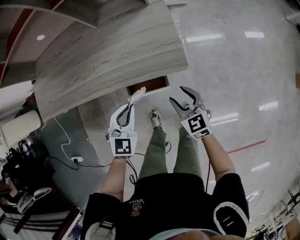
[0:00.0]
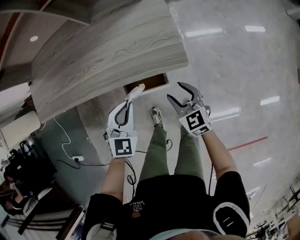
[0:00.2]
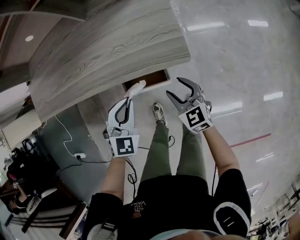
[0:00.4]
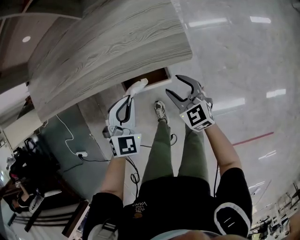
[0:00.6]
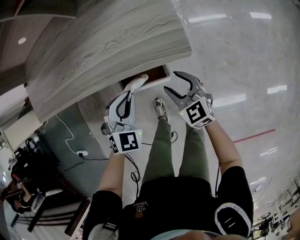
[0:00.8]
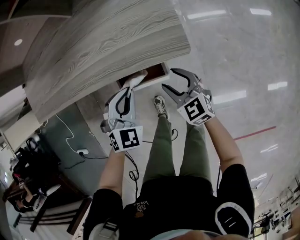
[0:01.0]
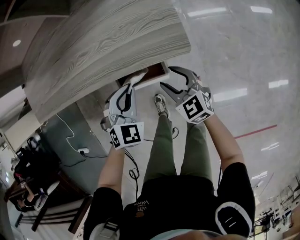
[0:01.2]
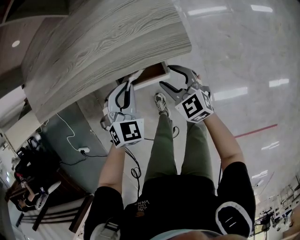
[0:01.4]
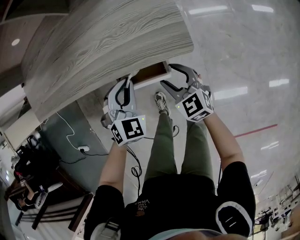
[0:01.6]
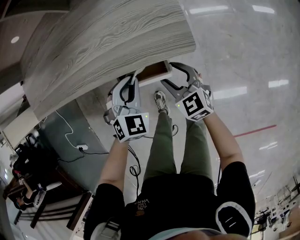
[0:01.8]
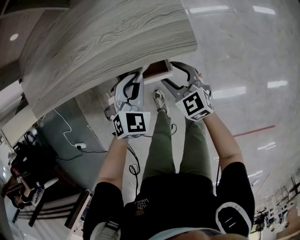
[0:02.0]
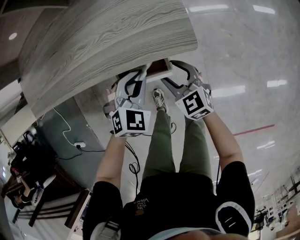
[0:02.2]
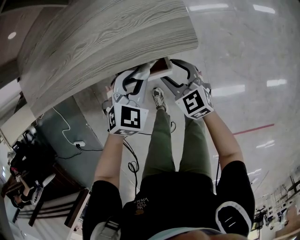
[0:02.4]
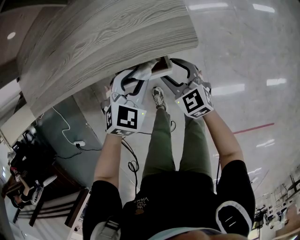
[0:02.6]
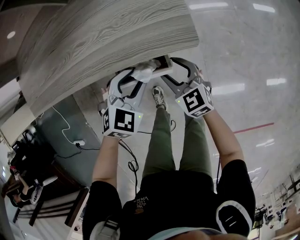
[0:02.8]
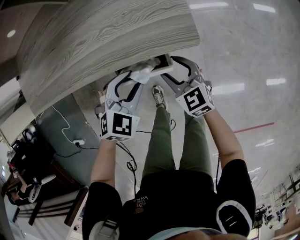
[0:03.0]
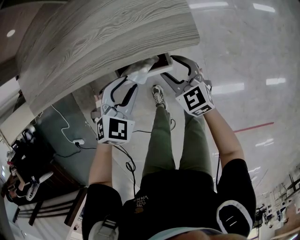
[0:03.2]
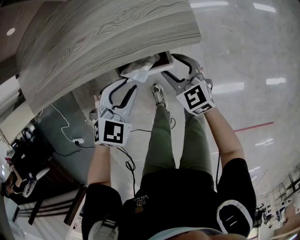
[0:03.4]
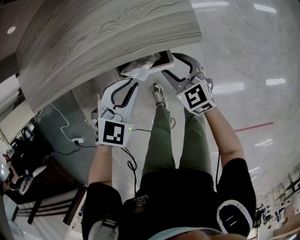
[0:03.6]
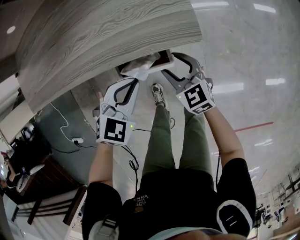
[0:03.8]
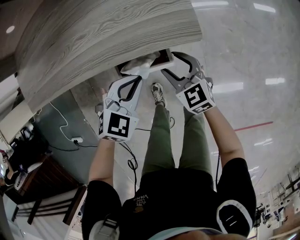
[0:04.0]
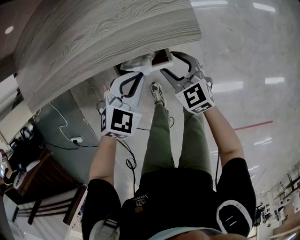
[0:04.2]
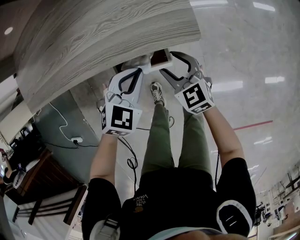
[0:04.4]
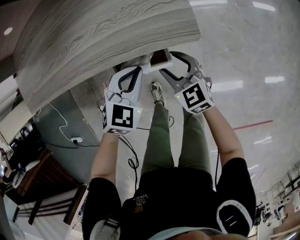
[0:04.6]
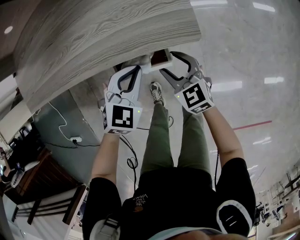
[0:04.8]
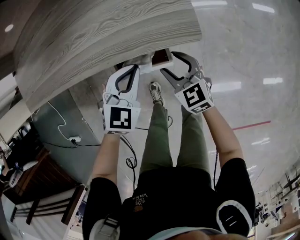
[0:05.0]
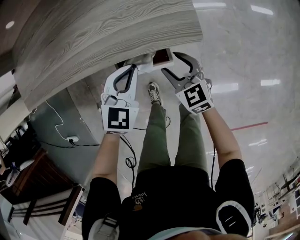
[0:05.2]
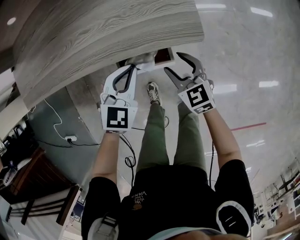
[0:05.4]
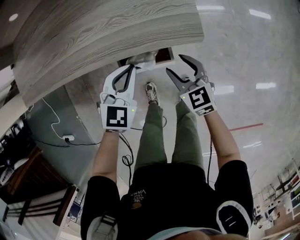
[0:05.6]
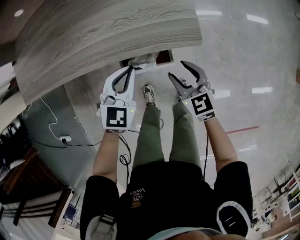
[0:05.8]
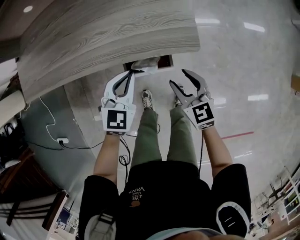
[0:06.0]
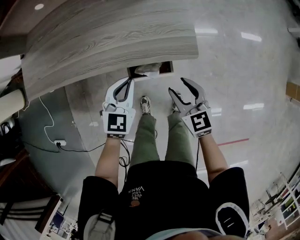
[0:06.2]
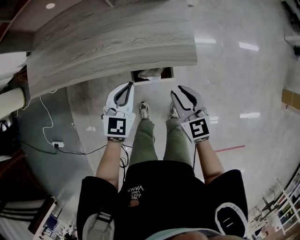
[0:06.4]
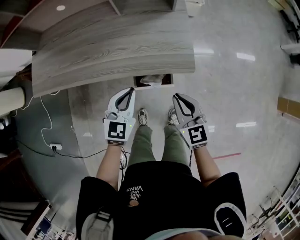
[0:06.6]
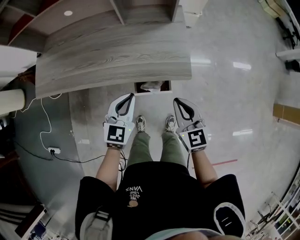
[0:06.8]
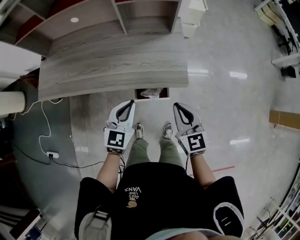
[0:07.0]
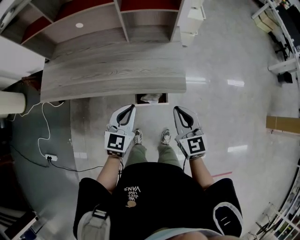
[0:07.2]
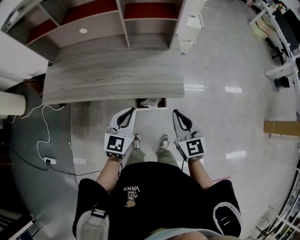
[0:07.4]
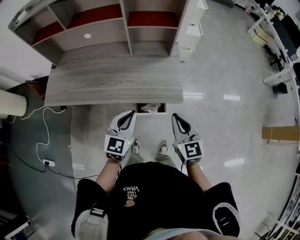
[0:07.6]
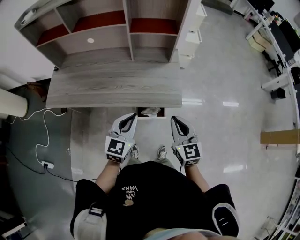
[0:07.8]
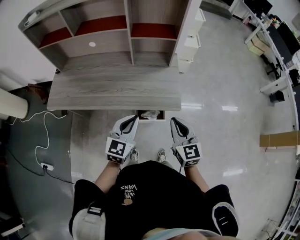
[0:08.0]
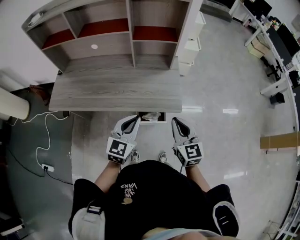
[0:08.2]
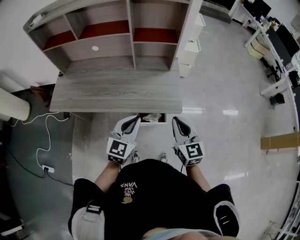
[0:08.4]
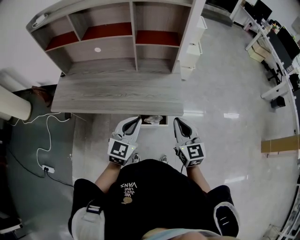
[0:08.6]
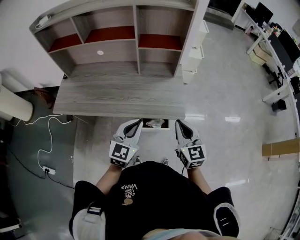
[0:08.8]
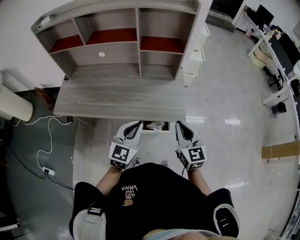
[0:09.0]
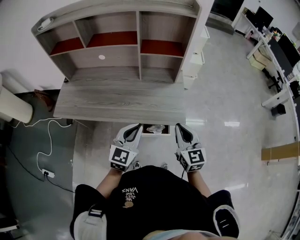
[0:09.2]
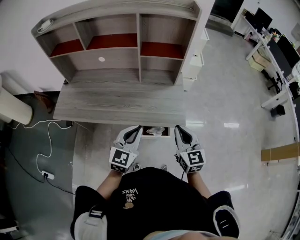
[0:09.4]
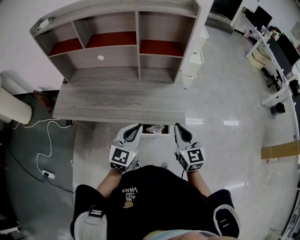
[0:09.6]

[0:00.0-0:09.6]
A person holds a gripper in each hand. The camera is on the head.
0:00.0 to 0:01.6: Both grippers travel together downward, about 10 cm. The left gripper turns by some 20 degrees.
0:01.6 to 0:03.2: The left gripper swivels about 20 degrees, and opens its fingers.
0:03.2 to 0:04.8: The left gripper closes up.
0:04.8 to 0:06.4: The left gripper moves upward and to the left, roughly 15 cm, and changes its angle by approximately 30 degrees, while the right gripper heads upward, covering roughly 15 cm, and closes its fingers.
0:06.4 to 0:08.0: Both grippers move upward, some 20 cm. The right gripper closes its fingers.
0:08.0 to 0:09.6: The grippers stay close to where they were, moving slightly.

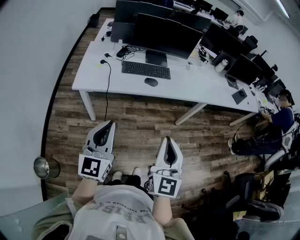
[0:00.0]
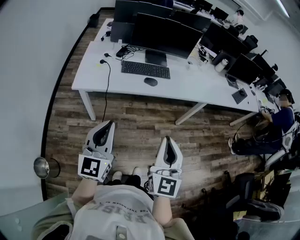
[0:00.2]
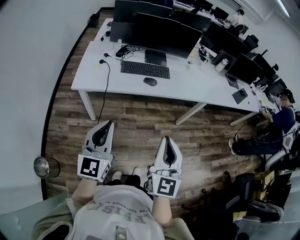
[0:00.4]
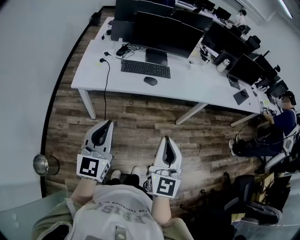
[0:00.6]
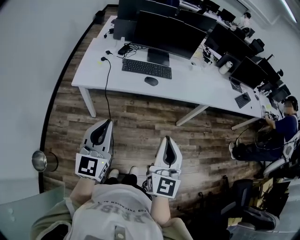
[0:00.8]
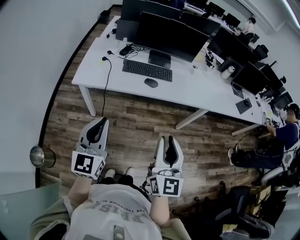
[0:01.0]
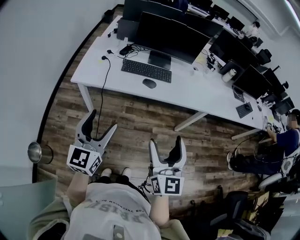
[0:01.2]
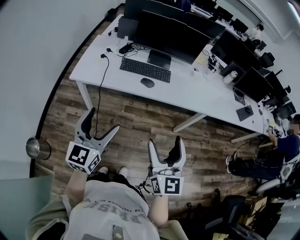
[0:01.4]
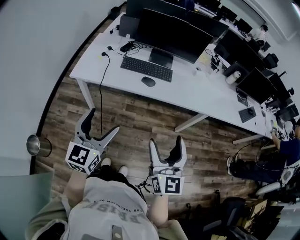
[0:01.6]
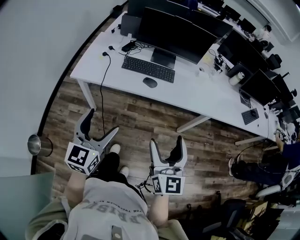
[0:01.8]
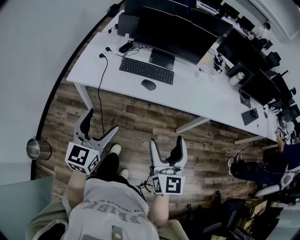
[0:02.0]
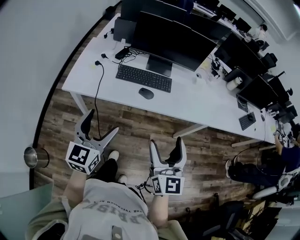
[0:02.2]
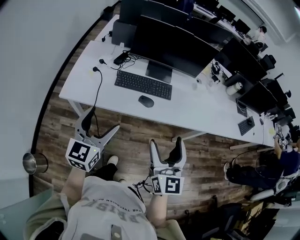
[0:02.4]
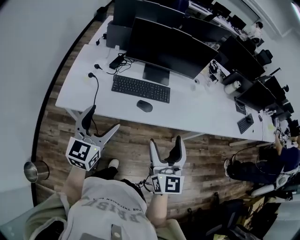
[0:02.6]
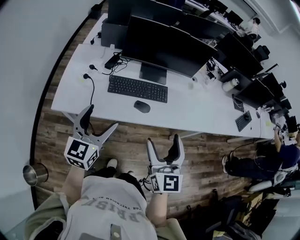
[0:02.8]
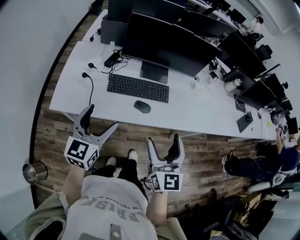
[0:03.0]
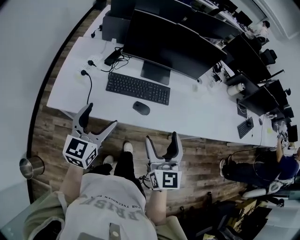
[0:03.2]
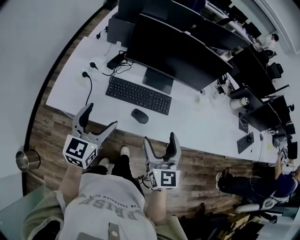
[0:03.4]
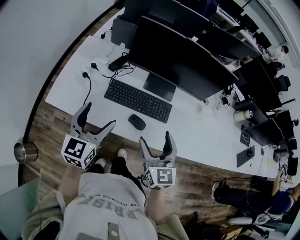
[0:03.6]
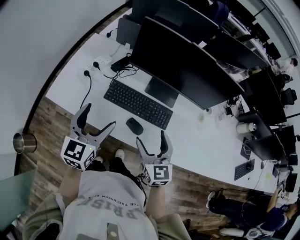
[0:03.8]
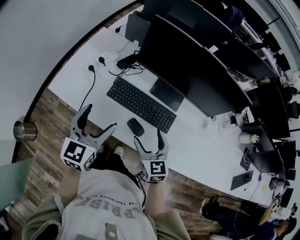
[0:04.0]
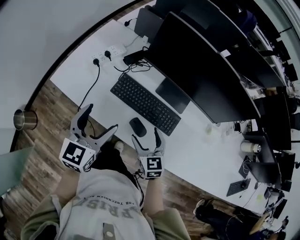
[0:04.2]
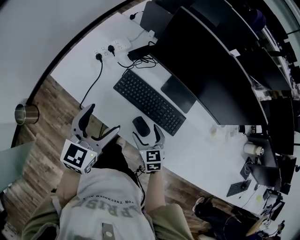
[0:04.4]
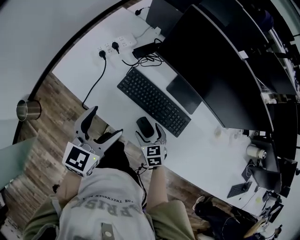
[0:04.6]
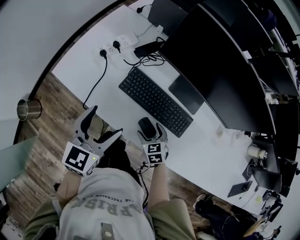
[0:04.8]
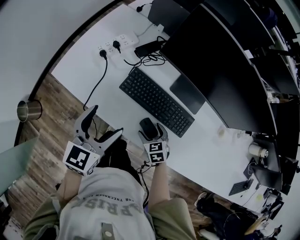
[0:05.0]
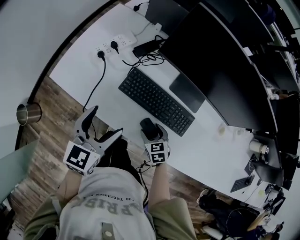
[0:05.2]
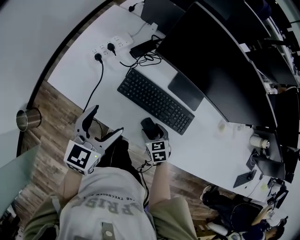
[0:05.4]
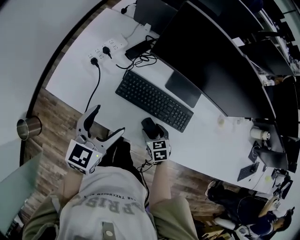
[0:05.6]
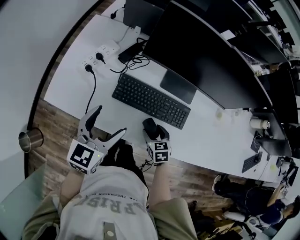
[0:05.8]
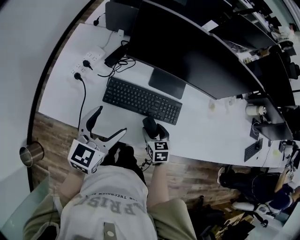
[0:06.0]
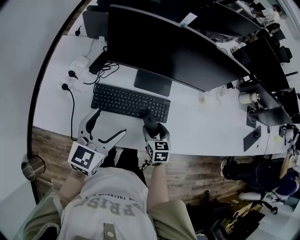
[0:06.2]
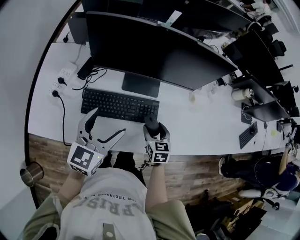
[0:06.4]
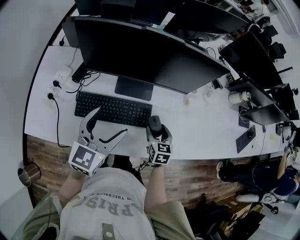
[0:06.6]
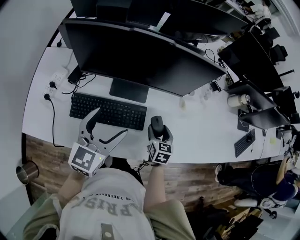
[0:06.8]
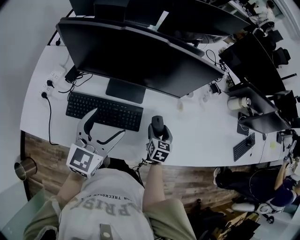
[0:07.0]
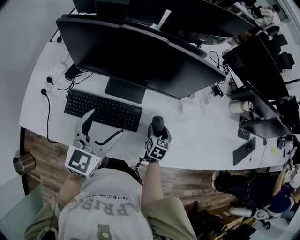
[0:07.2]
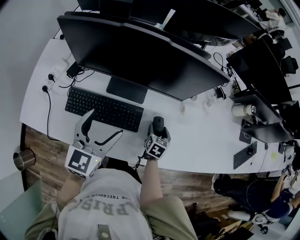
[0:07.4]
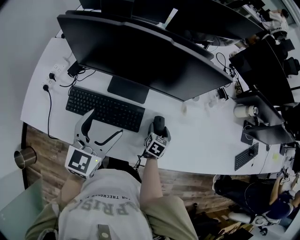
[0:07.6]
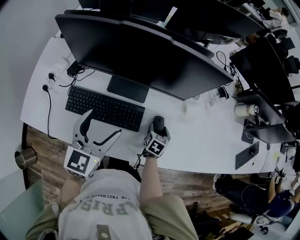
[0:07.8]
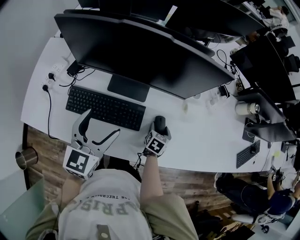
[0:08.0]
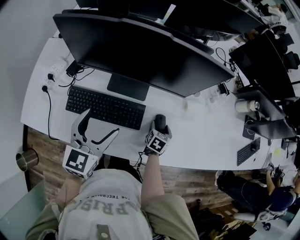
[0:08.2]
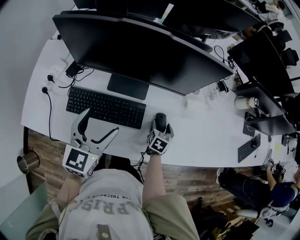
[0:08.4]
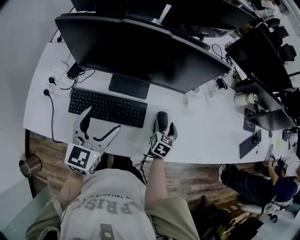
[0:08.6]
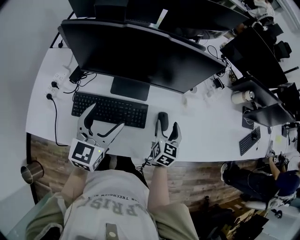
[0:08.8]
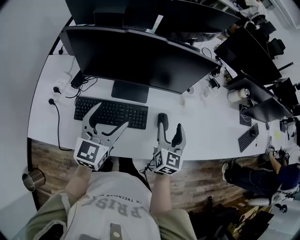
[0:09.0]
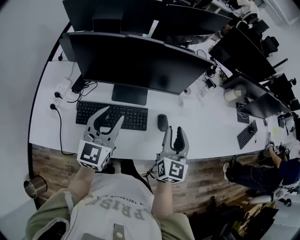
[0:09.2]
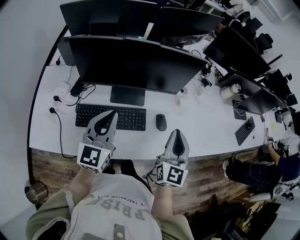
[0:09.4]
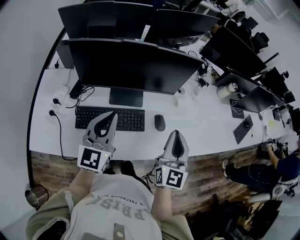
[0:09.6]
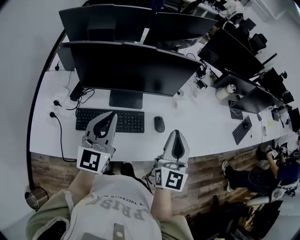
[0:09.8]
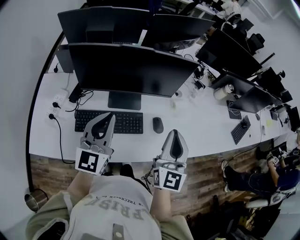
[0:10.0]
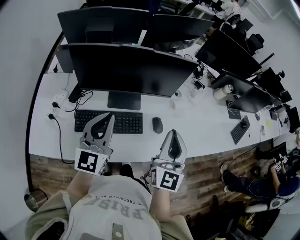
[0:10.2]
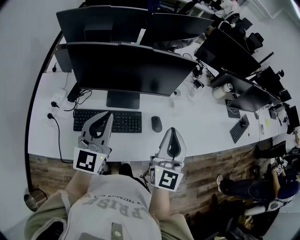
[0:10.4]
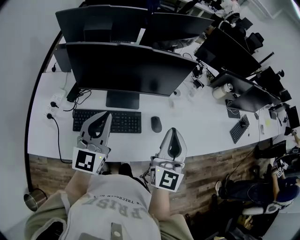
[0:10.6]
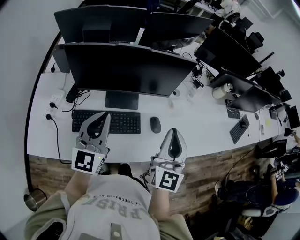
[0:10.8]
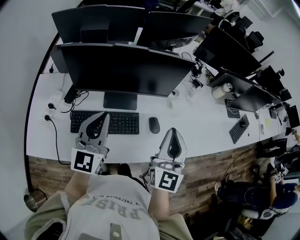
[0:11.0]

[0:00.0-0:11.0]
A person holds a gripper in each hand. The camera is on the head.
0:00.0 to 0:01.6: The left gripper is displaced to the right by about 10 cm, and opens its fingers. The right gripper moves to the right and forward, some 15 cm, swivels some 20 degrees, and opens up.
0:01.6 to 0:03.2: Both grippers travel together forward, about 30 cm.
0:03.2 to 0:04.8: The left gripper shifts by about 10 cm, and changes its angle by roughly 20 degrees, while the right gripper shifts about 35 cm downward, and points its fingers approximately 50 degrees further downward.
0:04.8 to 0:06.2: The left gripper moves about 10 cm, and changes its angle by approximately 30 degrees. Meanwhile the right gripper shifts by some 10 cm, and turns by roughly 40 degrees.
0:06.2 to 0:07.8: The two grippers go roughly 20 cm to the right and forward. The right gripper changes its angle by some 30 degrees.
0:07.8 to 0:09.4: The left gripper goes roughly 5 cm upward, and closes, while the right gripper is displaced upward by approximately 35 cm, points its fingers some 50 degrees further upward, and closes its fingers.
0:09.4 to 0:11.0: The right gripper moves upward, about 5 cm.

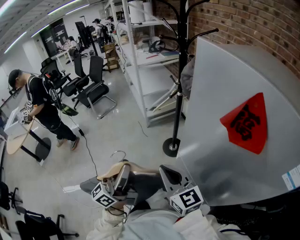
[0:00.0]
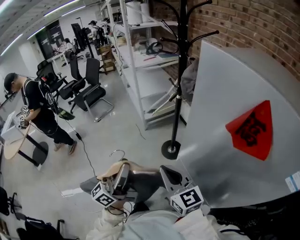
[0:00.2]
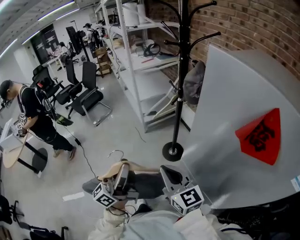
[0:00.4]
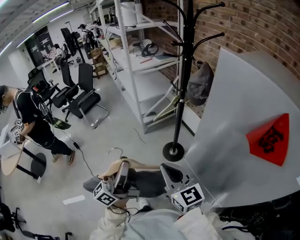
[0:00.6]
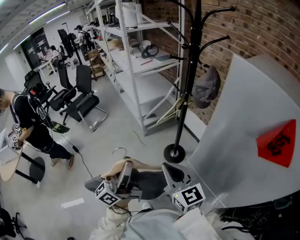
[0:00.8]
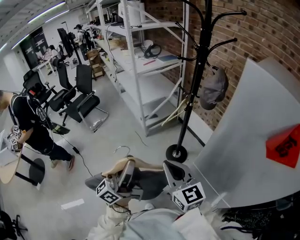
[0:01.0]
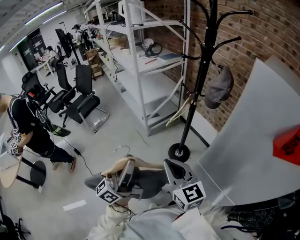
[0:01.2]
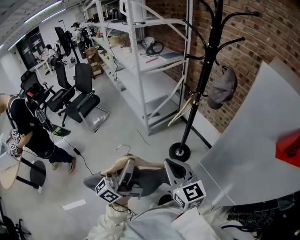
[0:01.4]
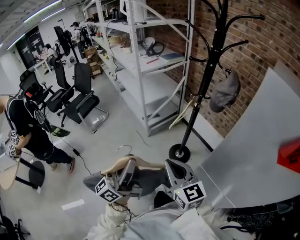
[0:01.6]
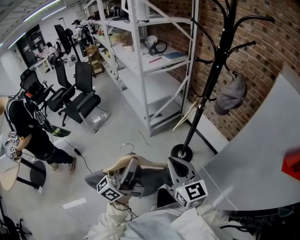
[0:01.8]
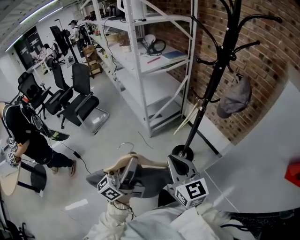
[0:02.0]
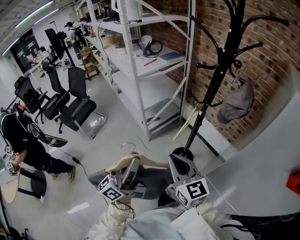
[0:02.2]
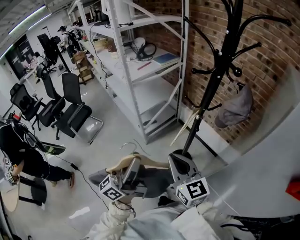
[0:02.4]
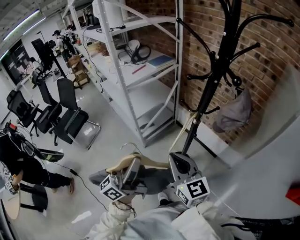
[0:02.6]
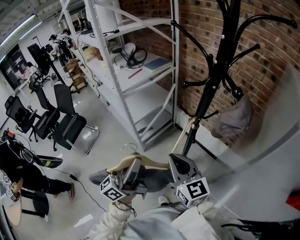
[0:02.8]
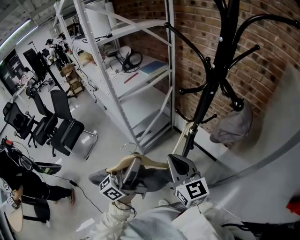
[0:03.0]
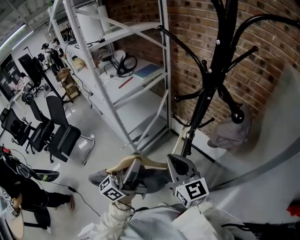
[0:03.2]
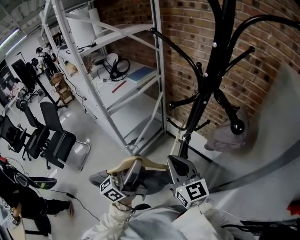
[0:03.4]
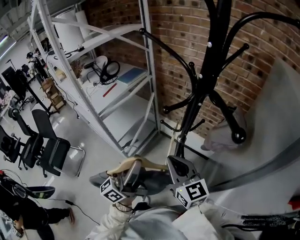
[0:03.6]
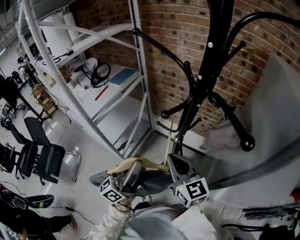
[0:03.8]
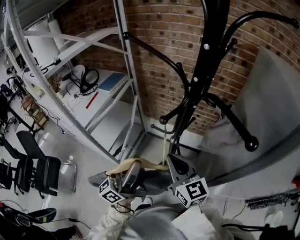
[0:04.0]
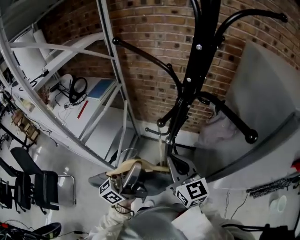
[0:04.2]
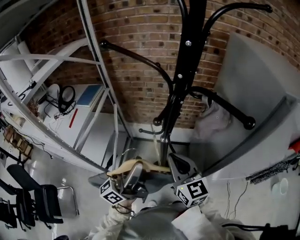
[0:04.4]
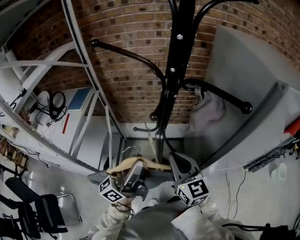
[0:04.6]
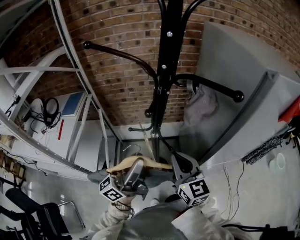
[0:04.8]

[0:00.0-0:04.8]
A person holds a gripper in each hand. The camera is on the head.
0:00.0 to 0:01.6: Both grippers travel together to the left and forward, some 30 cm.
0:01.6 to 0:03.2: The grippers both shift forward by about 35 cm.
0:03.2 to 0:04.8: The right gripper shifts by approximately 5 cm, and turns by roughly 50 degrees. Meanwhile the left gripper shifts by about 10 cm, and rotates some 50 degrees.
